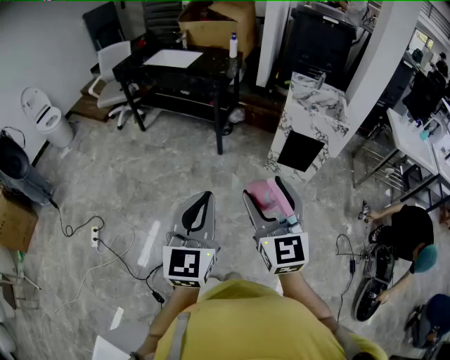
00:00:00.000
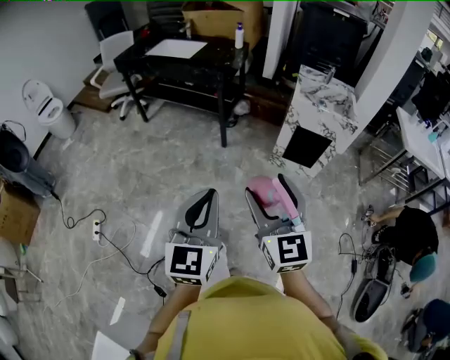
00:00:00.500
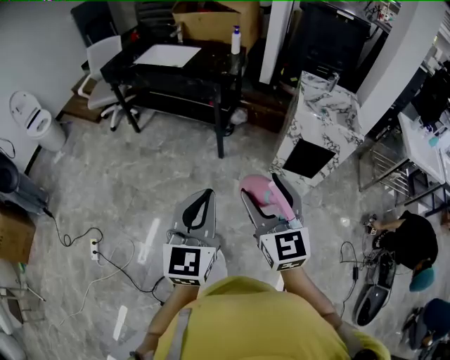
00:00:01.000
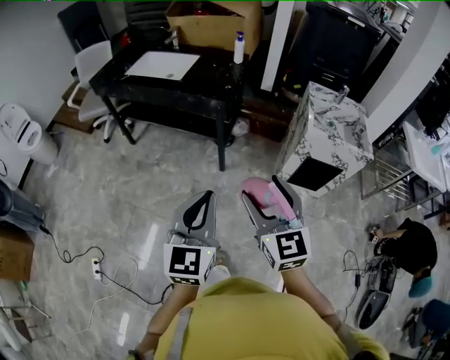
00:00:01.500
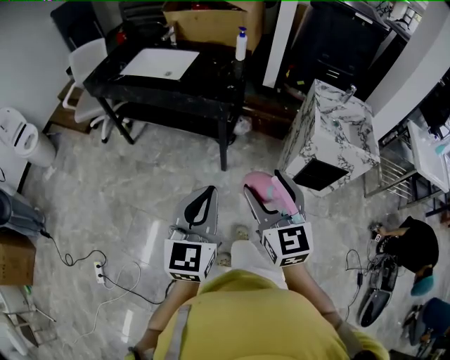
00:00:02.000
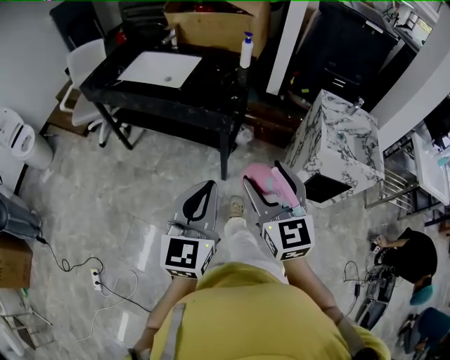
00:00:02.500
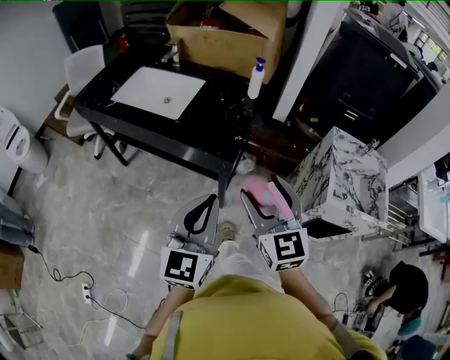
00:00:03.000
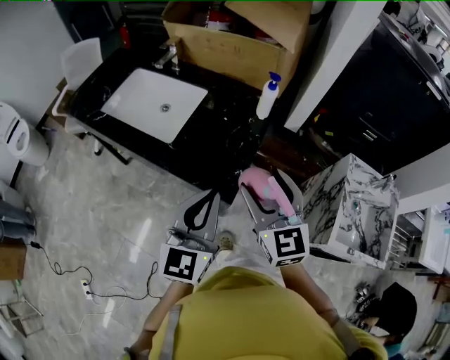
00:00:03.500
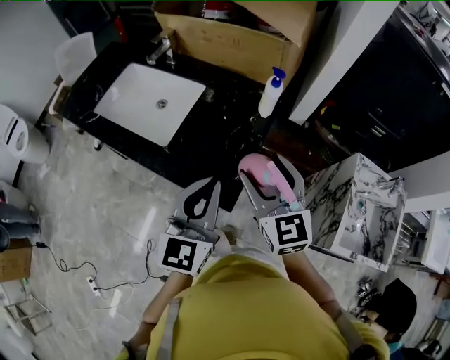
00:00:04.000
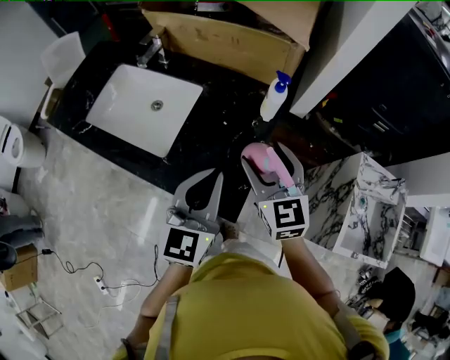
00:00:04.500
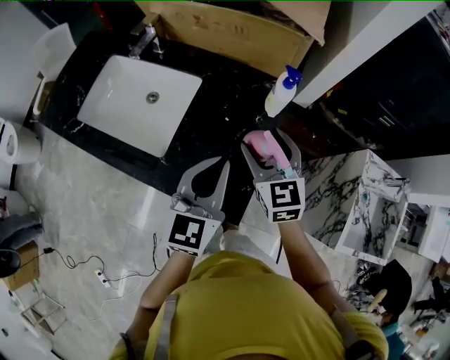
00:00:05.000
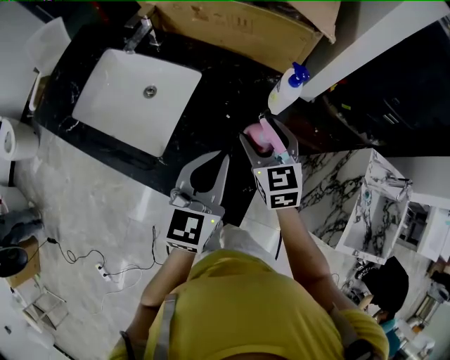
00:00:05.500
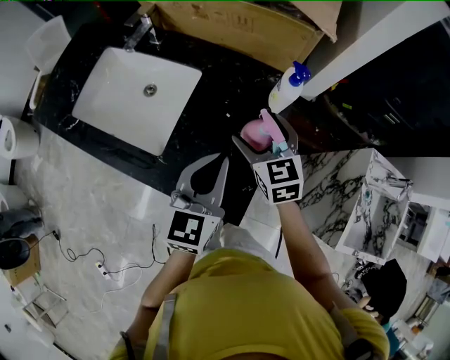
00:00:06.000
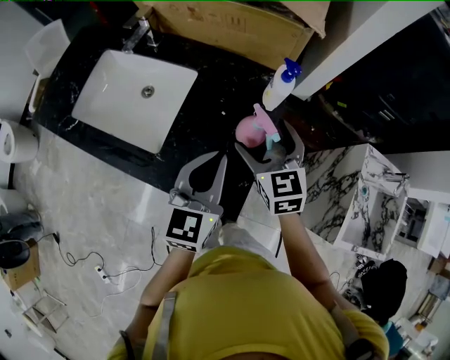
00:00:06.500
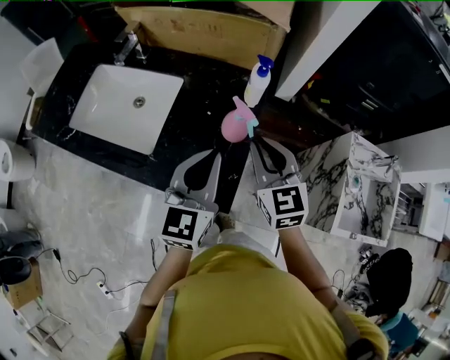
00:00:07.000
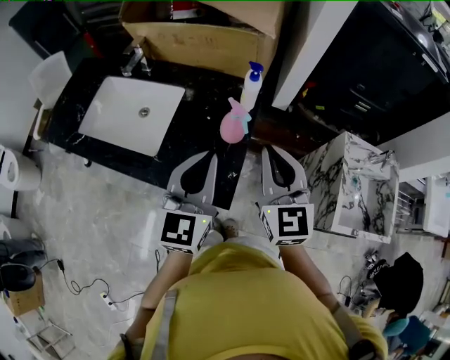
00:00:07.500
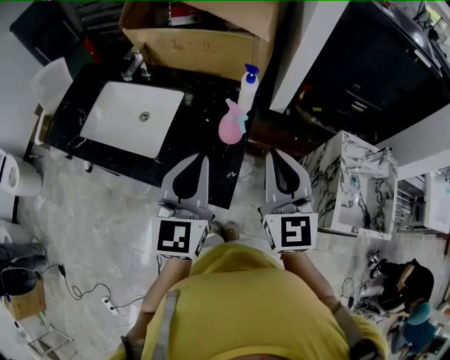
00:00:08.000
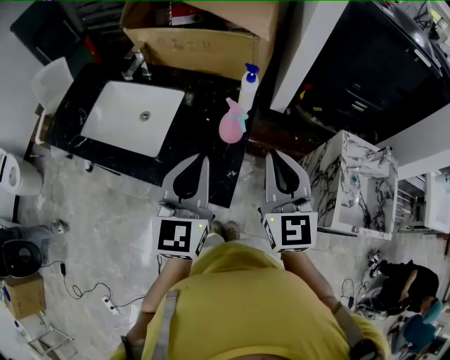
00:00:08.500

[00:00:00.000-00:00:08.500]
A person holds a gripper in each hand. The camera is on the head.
00:00:00.000 to 00:00:02.000: Both grippers are carried forward, approximately 40 cm.
00:00:02.000 to 00:00:04.000: Both grippers are carried forward, some 50 cm.
00:00:04.000 to 00:00:06.500: Both grippers travel together forward and downward, about 15 cm. The right gripper opens its fingers.
00:00:06.500 to 00:00:08.500: The right gripper heads upward, backward and to the right, covering about 25 cm, changes its angle by approximately 30 degrees, and closes up; the left gripper heads upward and backward, covering some 15 cm.

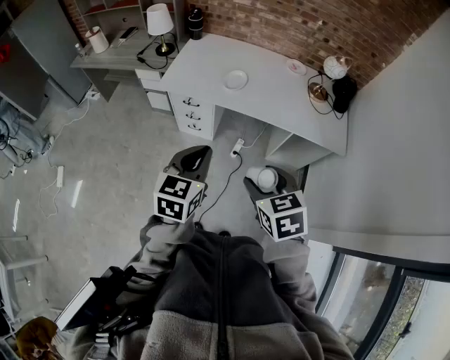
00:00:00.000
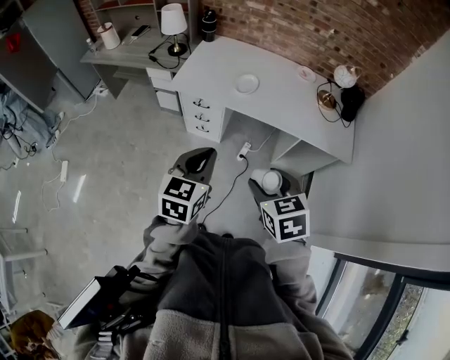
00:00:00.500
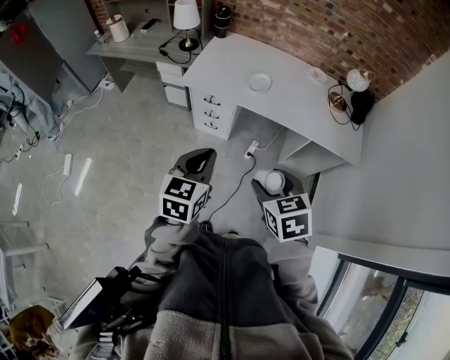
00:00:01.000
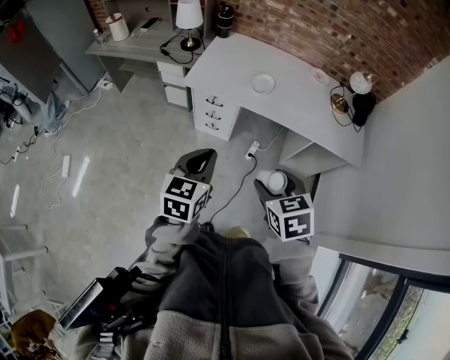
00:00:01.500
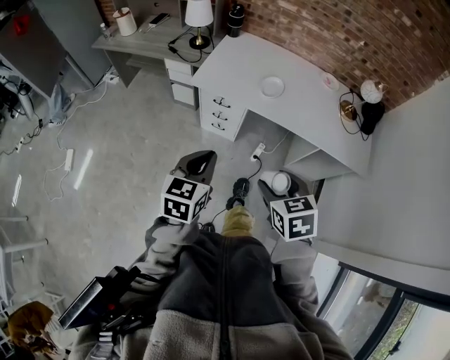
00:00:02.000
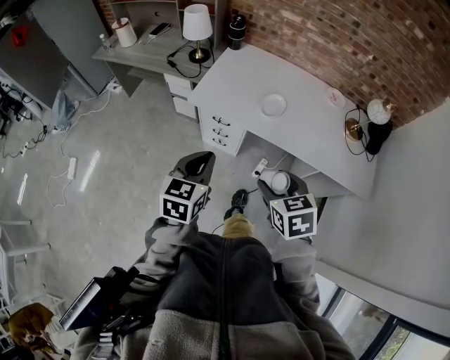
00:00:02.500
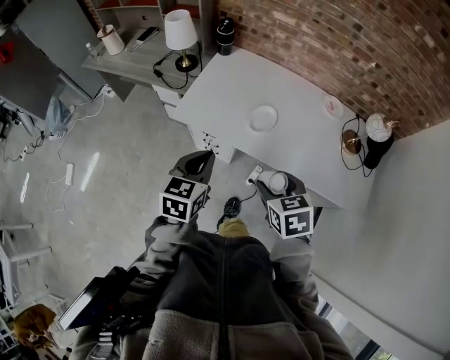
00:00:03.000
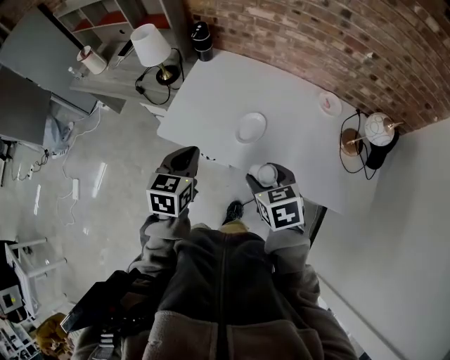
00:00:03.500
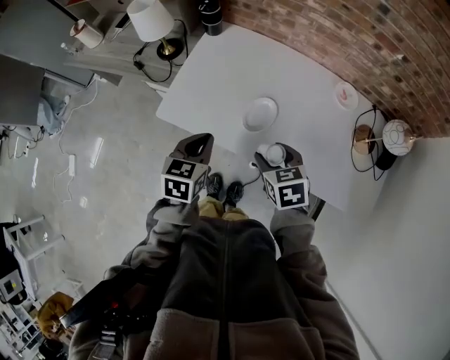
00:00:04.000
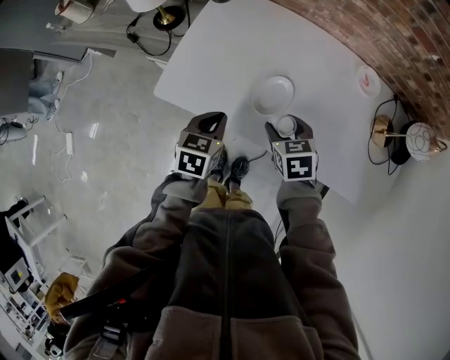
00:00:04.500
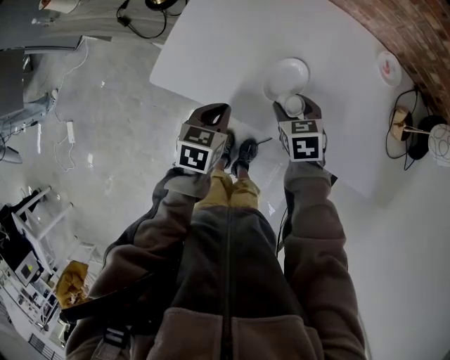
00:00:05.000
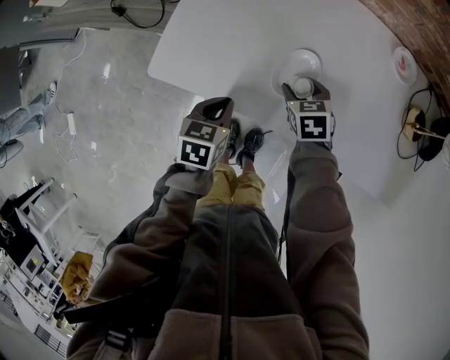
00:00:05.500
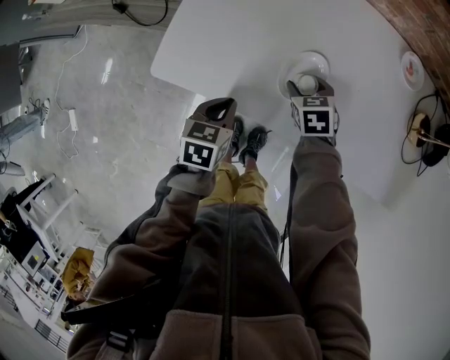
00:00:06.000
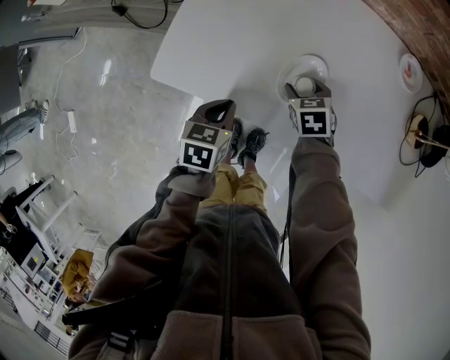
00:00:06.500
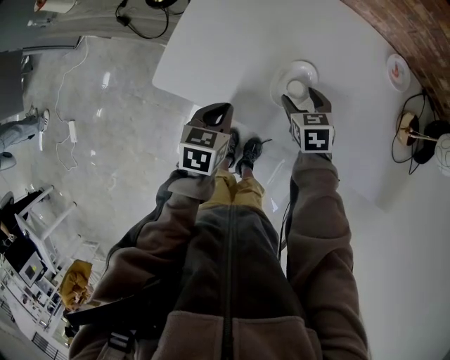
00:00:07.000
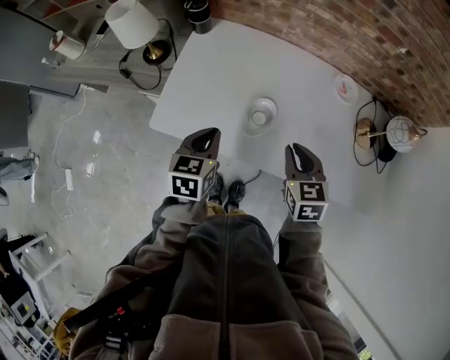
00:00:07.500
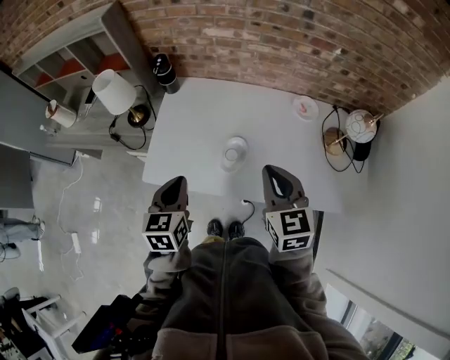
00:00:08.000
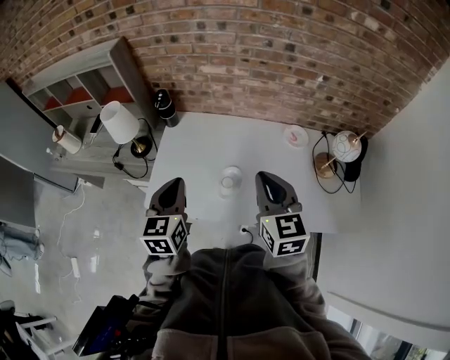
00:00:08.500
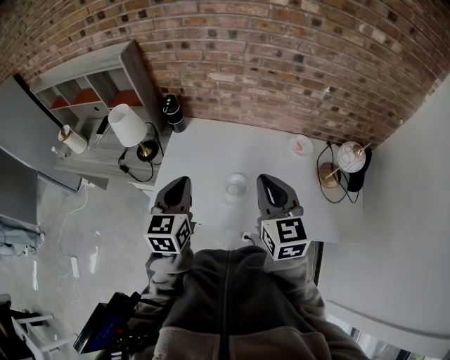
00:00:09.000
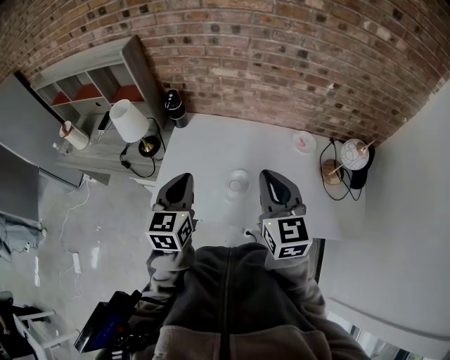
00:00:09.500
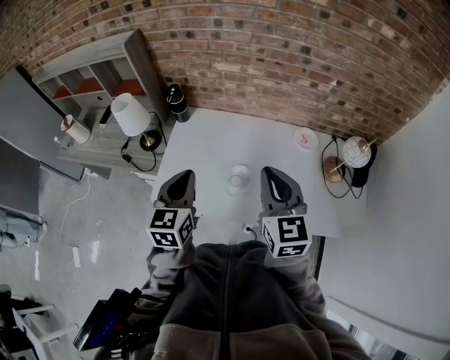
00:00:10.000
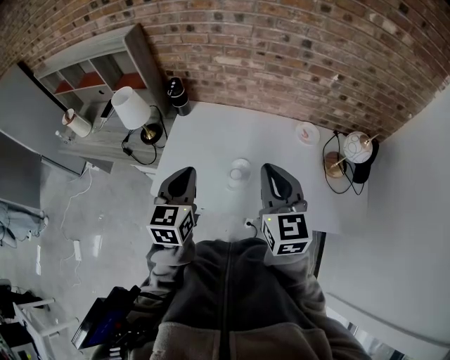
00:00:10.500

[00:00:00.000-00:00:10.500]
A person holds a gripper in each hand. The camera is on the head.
00:00:00.000 to 00:00:02.000: The right gripper goes roughly 10 cm to the left and forward. Meanwhile the left gripper is displaced to the left by approximately 15 cm.
00:00:02.000 to 00:00:04.000: Both grippers travel together forward, roughly 40 cm.
00:00:04.000 to 00:00:06.500: The left gripper shifts approximately 20 cm downward; the right gripper is displaced downward and forward by about 30 cm.
00:00:06.500 to 00:00:08.500: Both grippers travel together upward, about 40 cm. The left gripper angles its fingers upward, by some 30 degrees; the right gripper points its fingers roughly 50 degrees further upward, and closes.
00:00:08.500 to 00:00:10.500: The grippers stay close to where they were, moving slightly.

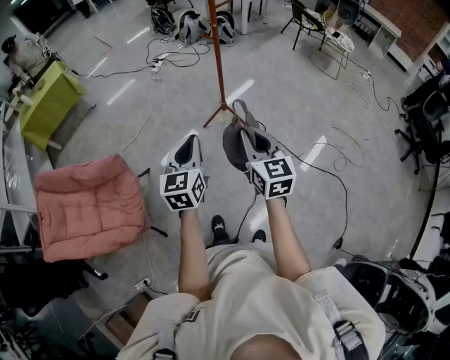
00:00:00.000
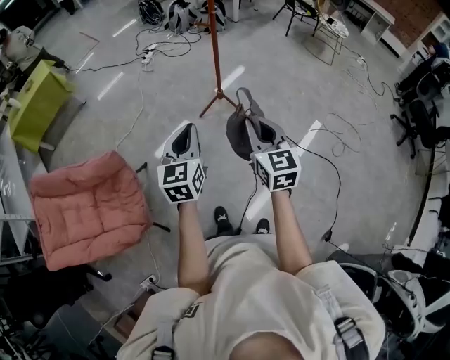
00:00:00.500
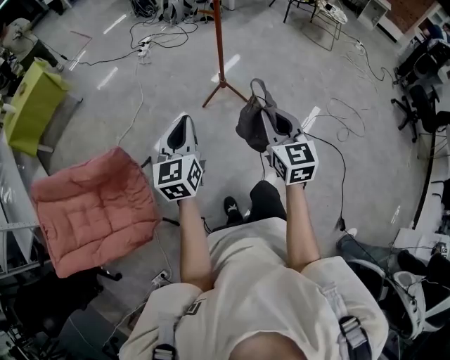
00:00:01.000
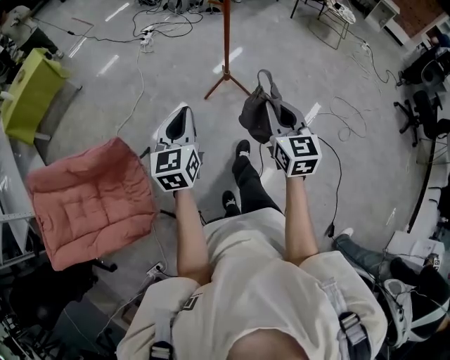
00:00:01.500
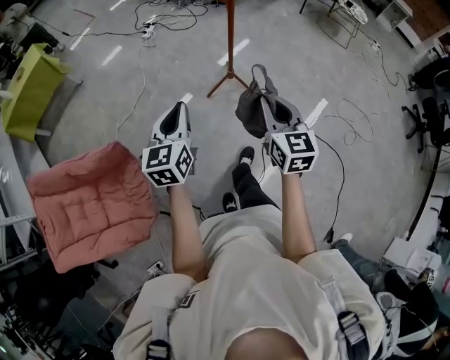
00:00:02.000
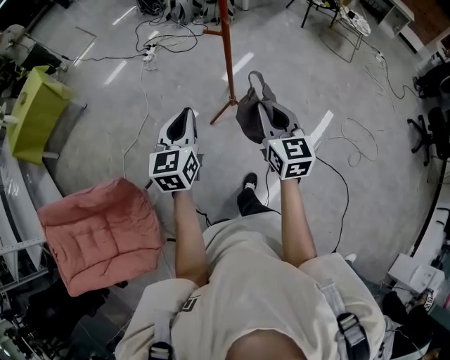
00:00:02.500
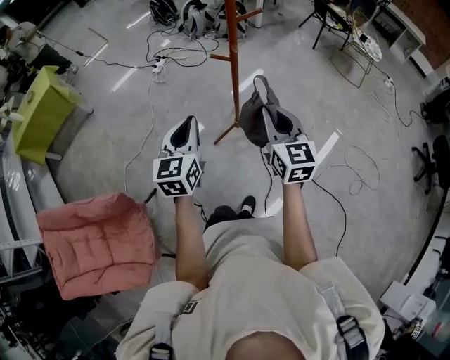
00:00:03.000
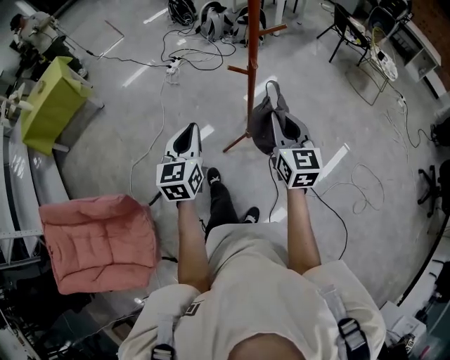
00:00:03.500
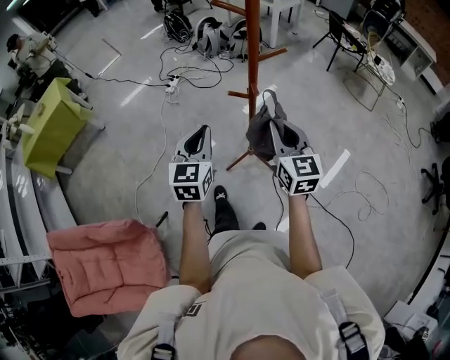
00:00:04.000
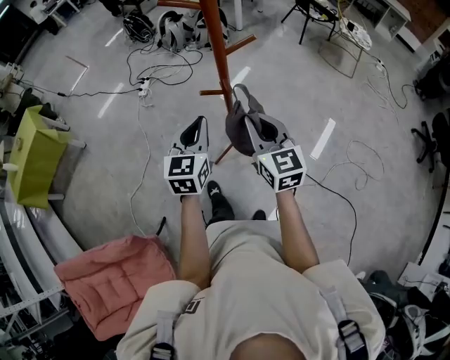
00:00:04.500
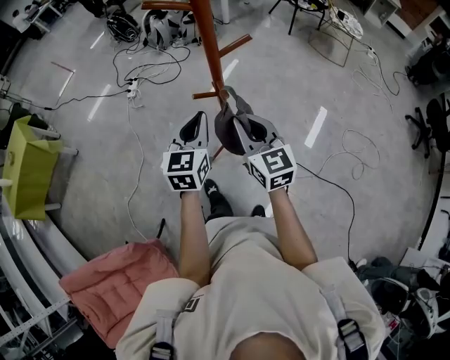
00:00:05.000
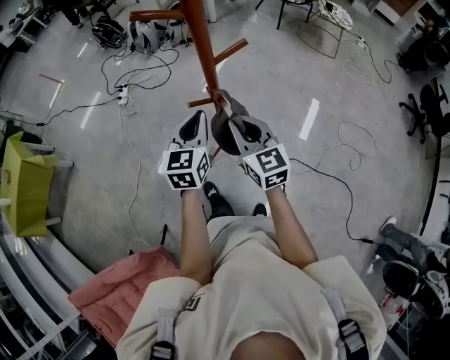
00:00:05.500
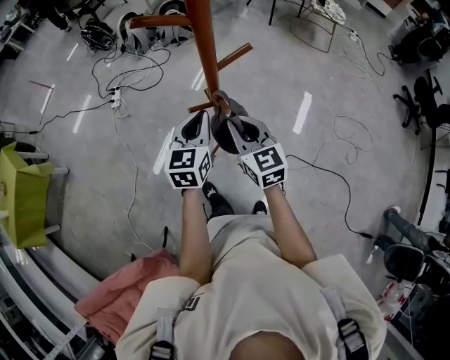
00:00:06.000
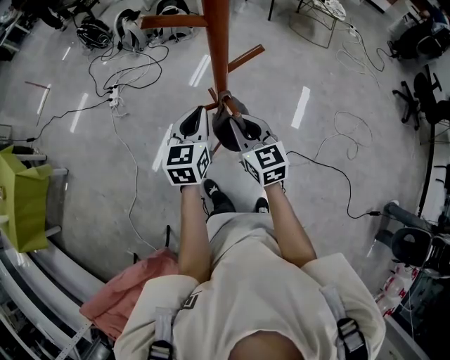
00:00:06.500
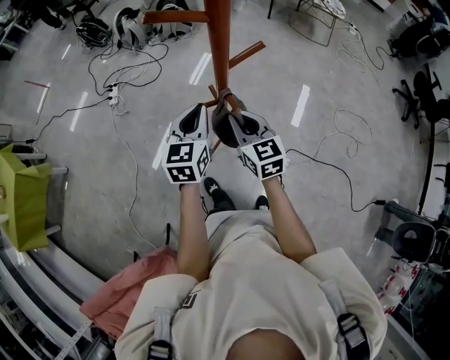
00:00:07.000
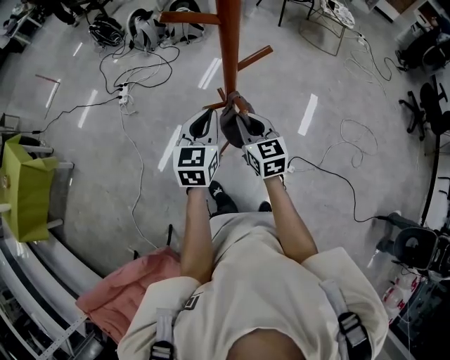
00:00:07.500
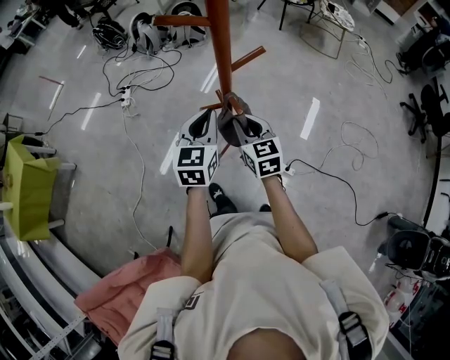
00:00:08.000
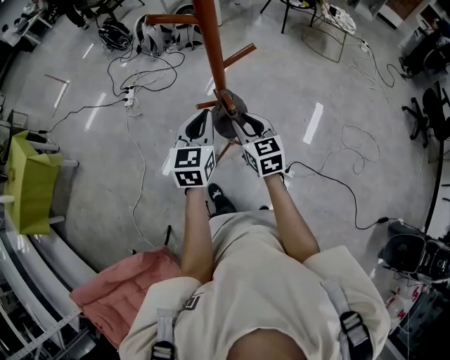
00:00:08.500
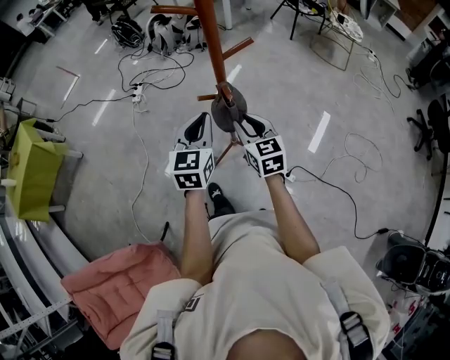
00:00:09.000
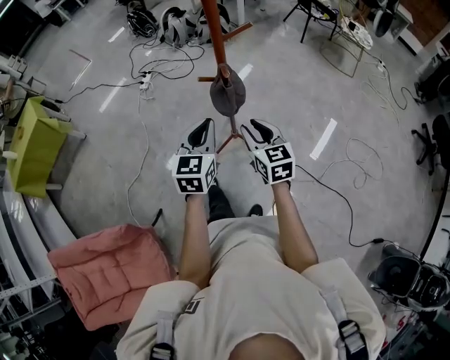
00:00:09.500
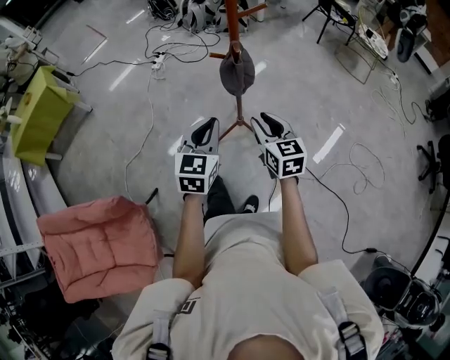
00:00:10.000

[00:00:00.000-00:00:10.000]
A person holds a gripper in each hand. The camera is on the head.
00:00:00.000 to 00:00:02.000: The right gripper shifts some 10 cm forward; the left gripper heads forward and to the left, covering about 15 cm.
00:00:02.000 to 00:00:04.000: The grippers both shift forward by some 30 cm.
00:00:04.000 to 00:00:06.000: The left gripper travels forward, to the right and downward by some 15 cm, and changes its angle by roughly 20 degrees; the right gripper goes roughly 10 cm downward and forward.
00:00:06.000 to 00:00:08.000: The right gripper goes approximately 5 cm downward.
00:00:08.000 to 00:00:10.000: The grippers both shift backward by approximately 15 cm.
